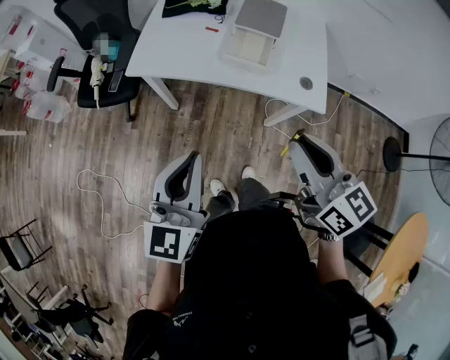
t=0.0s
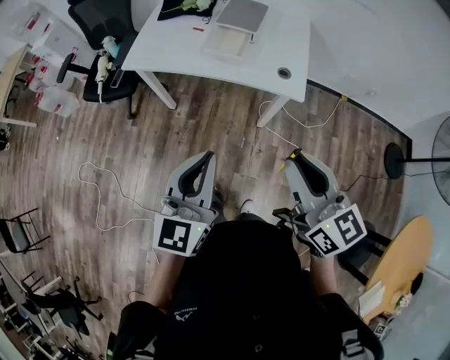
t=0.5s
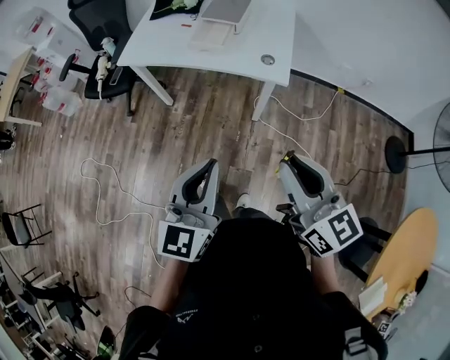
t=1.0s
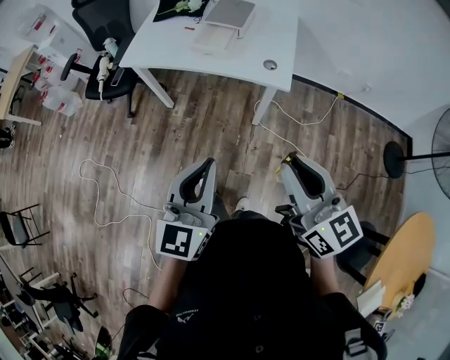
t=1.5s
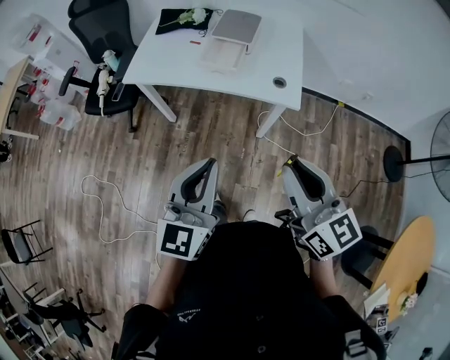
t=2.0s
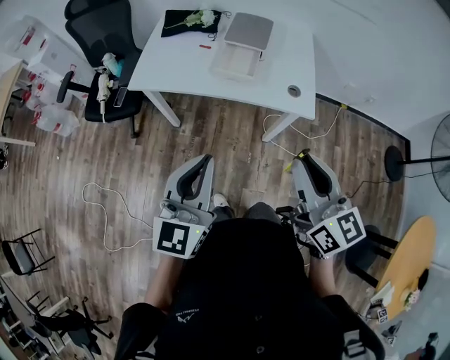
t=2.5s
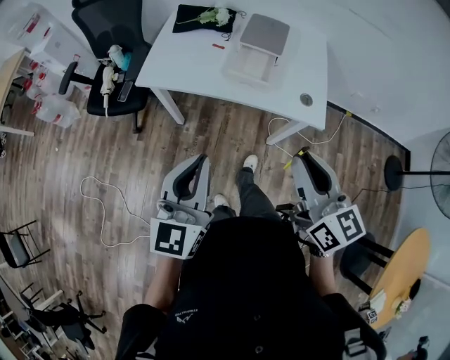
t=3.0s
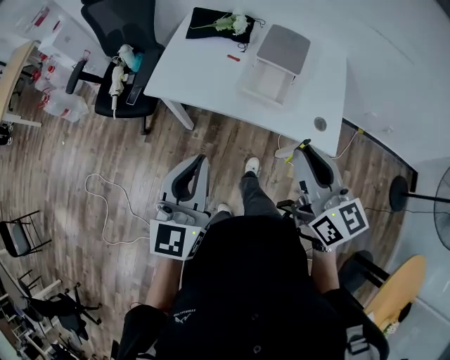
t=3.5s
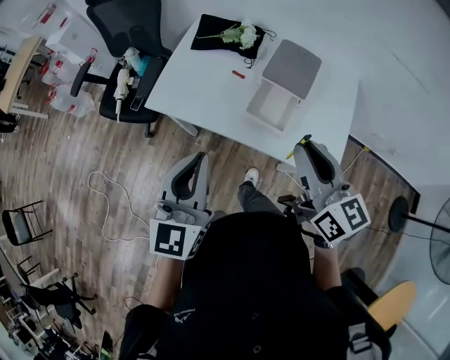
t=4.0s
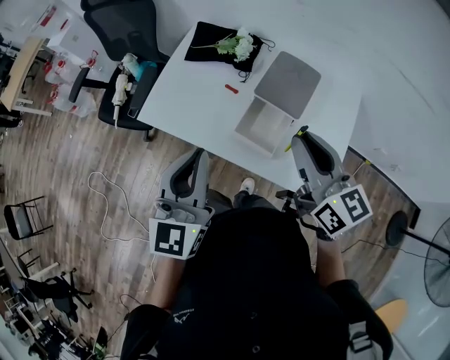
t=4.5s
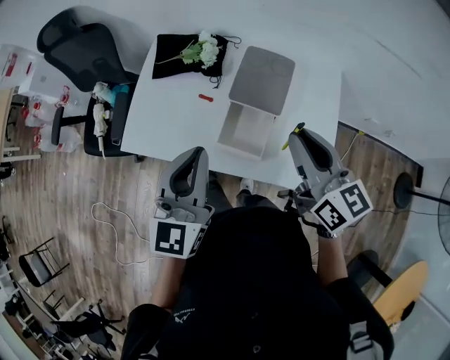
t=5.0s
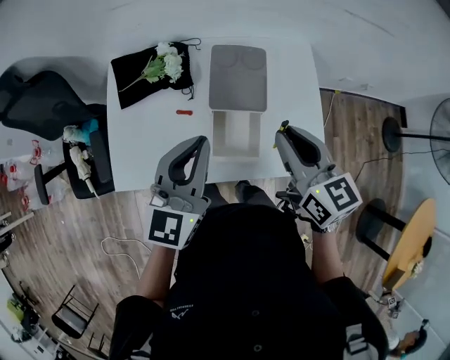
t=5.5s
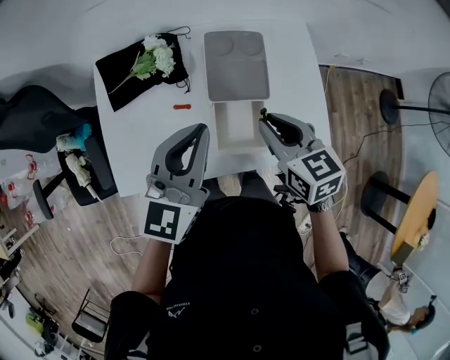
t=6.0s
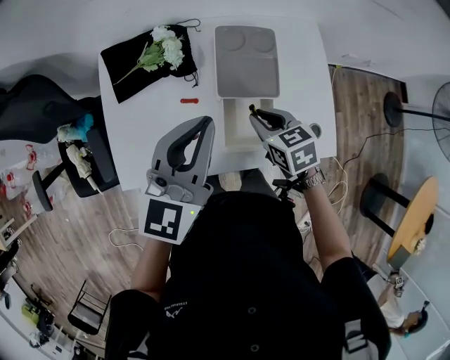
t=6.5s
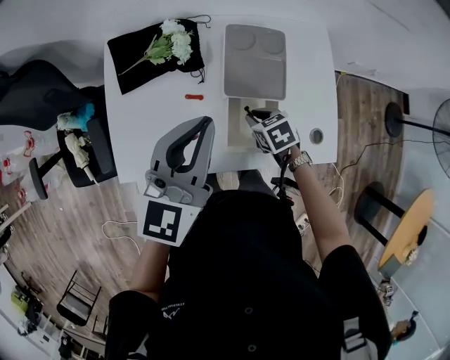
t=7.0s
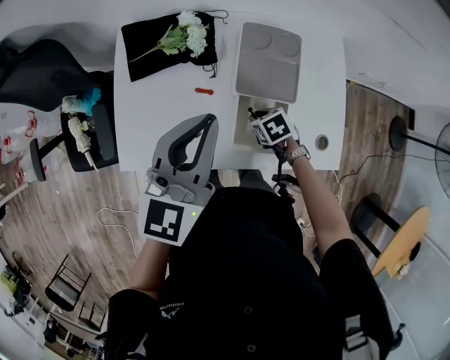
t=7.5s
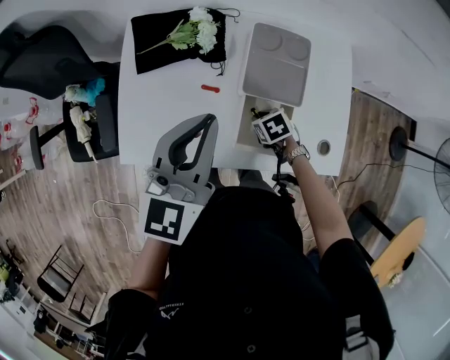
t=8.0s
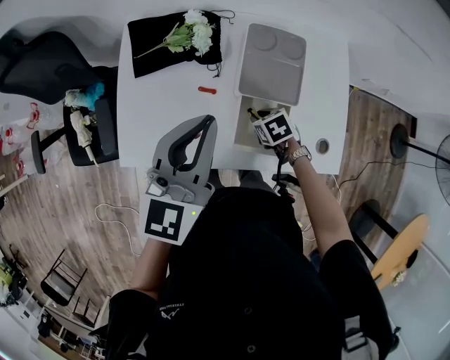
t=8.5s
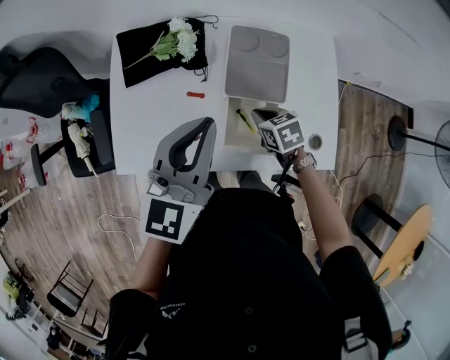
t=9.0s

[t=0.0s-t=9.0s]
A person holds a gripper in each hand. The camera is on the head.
t=0.0s to t=2.0s: The right gripper moves backward and to the right, approximately 20 cm. The left gripper travels to the right and backward by about 20 cm.
t=2.0s to t=4.5s: Both grippers are carried forward, approximately 40 cm.
t=4.5s to t=7.0s: The left gripper shifts by some 20 cm, and swivels some 40 degrees; the right gripper travels downward by approximately 30 cm, and angles its fingers downward, by some 60 degrees.
t=7.0s to t=9.0s: The right gripper moves approximately 5 cm downward and comes back.

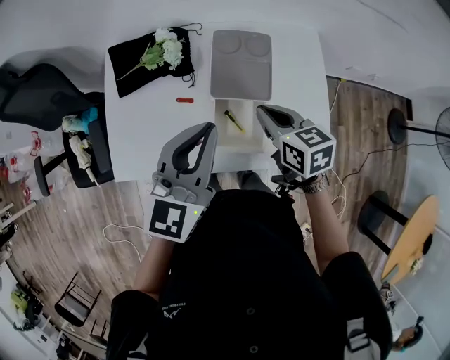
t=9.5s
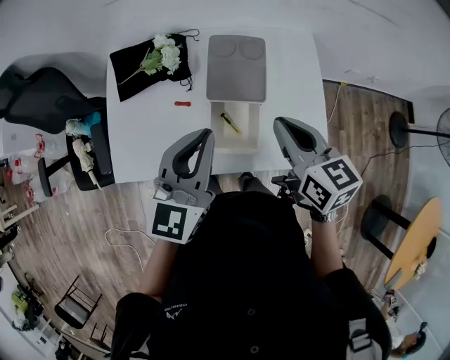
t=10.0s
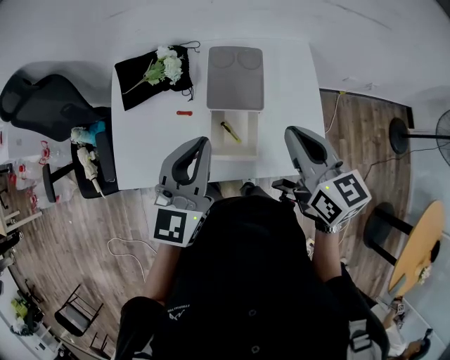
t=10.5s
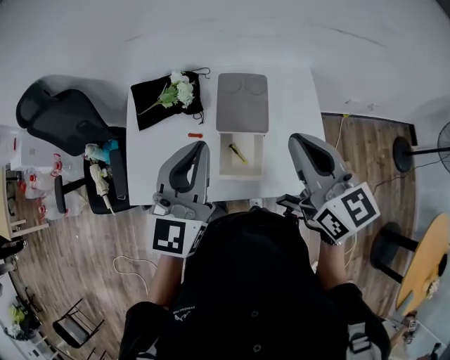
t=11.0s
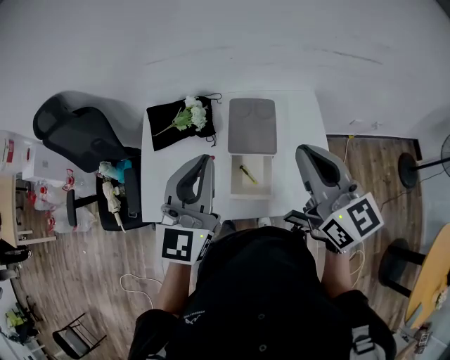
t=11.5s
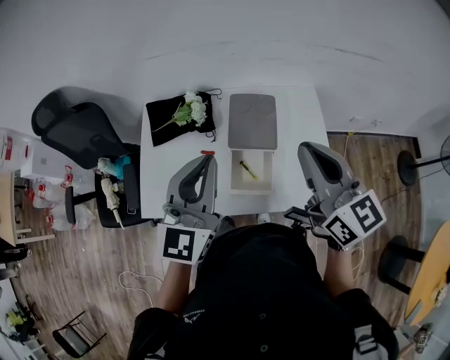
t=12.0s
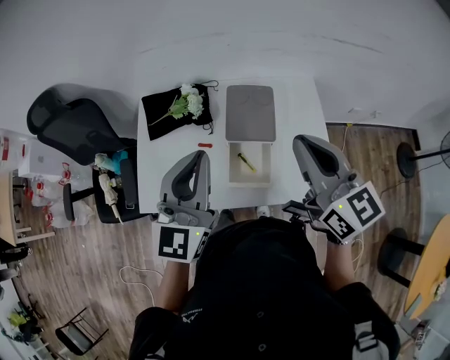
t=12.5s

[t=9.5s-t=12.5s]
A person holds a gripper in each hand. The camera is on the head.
t=9.5s to t=11.0s: The left gripper moves upward, roughly 10 cm, while the right gripper heads upward, covering about 20 cm, and rotates roughly 30 degrees.
t=11.0s to t=12.5s: The grippers move only a little.

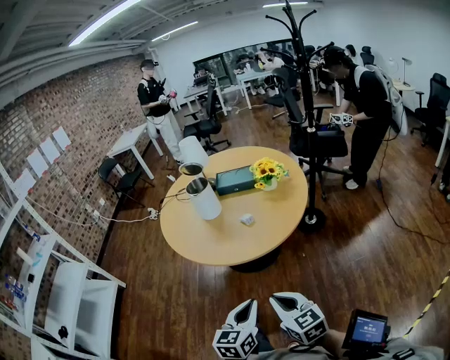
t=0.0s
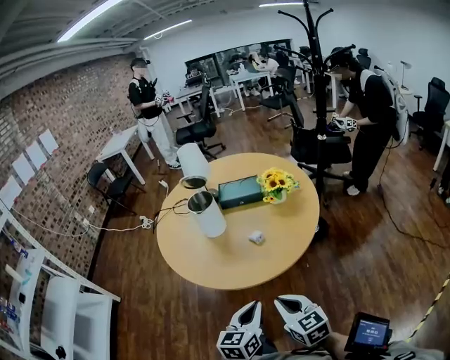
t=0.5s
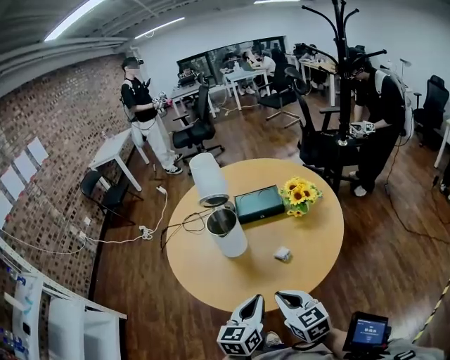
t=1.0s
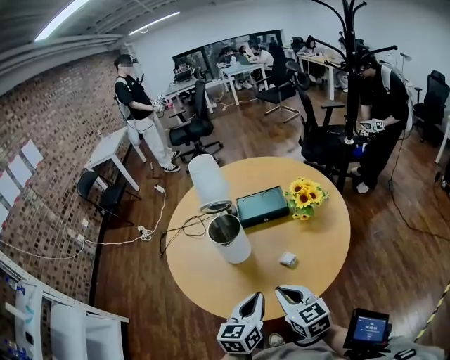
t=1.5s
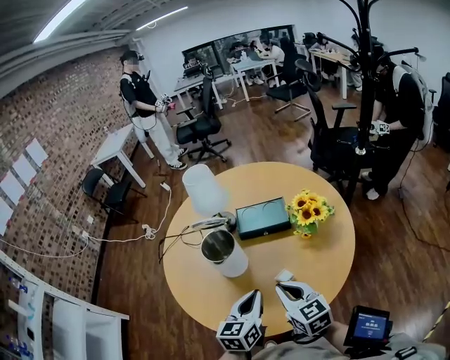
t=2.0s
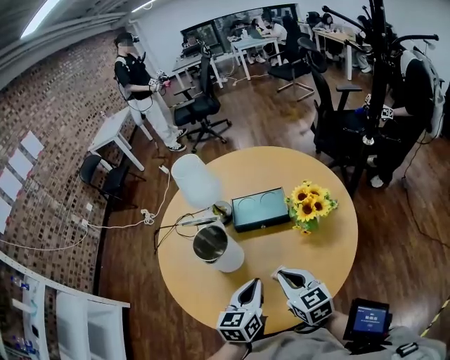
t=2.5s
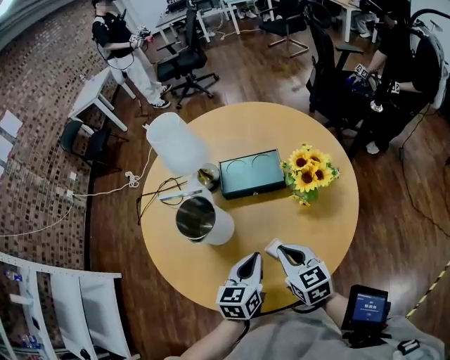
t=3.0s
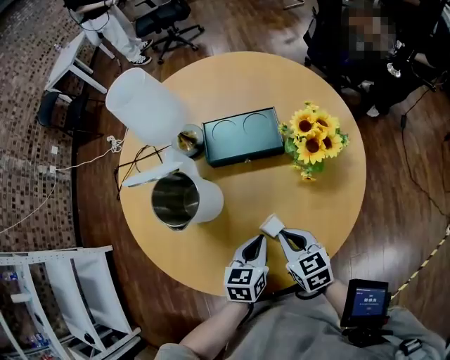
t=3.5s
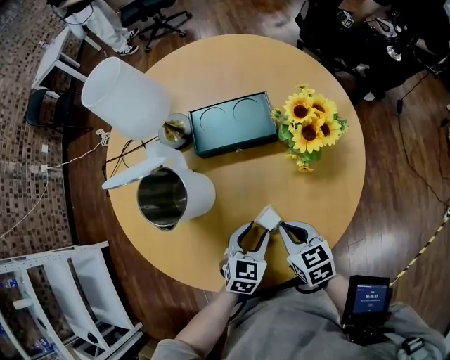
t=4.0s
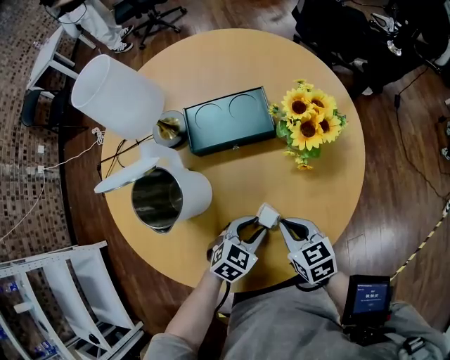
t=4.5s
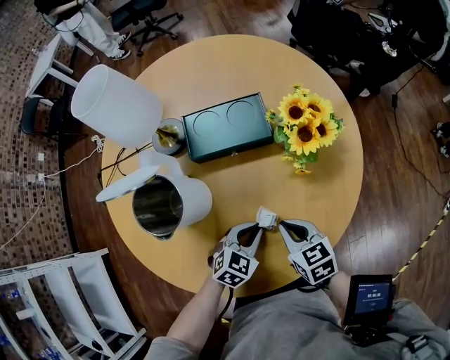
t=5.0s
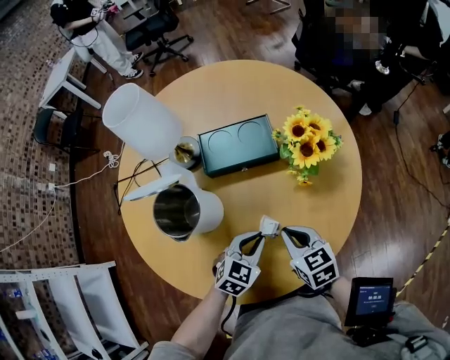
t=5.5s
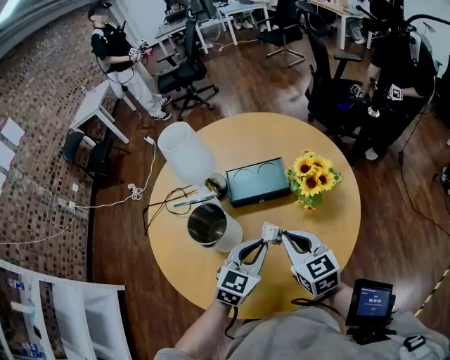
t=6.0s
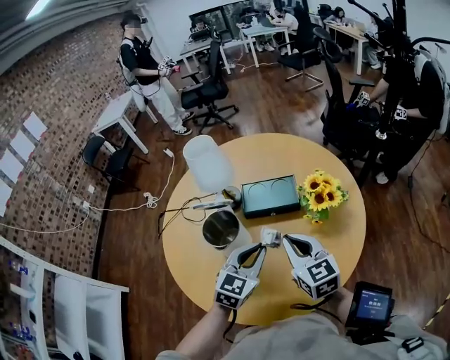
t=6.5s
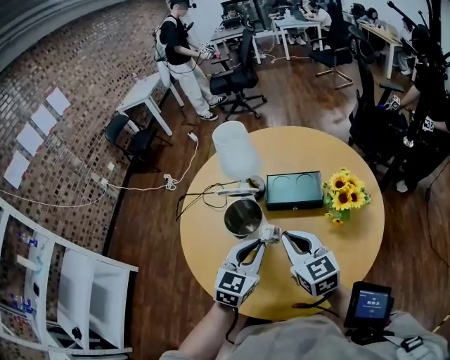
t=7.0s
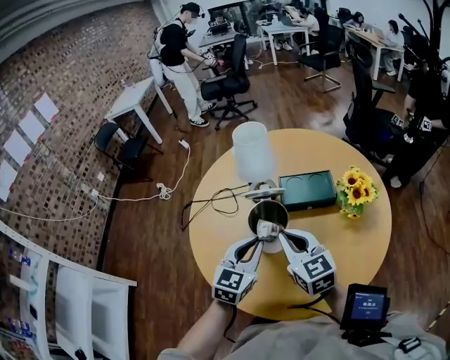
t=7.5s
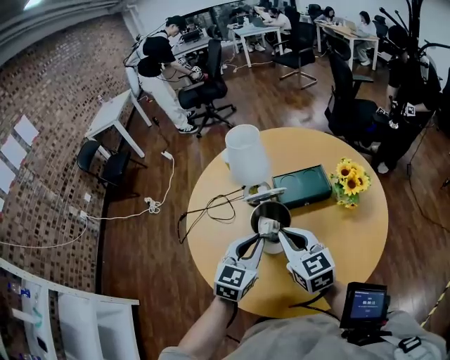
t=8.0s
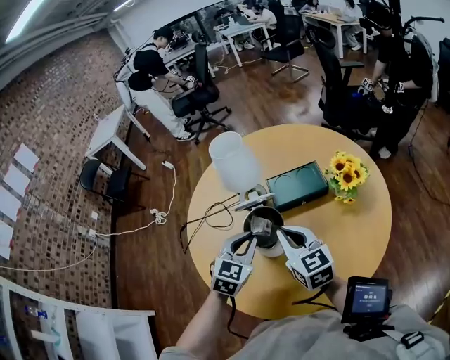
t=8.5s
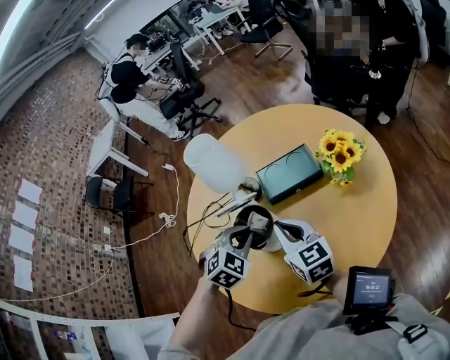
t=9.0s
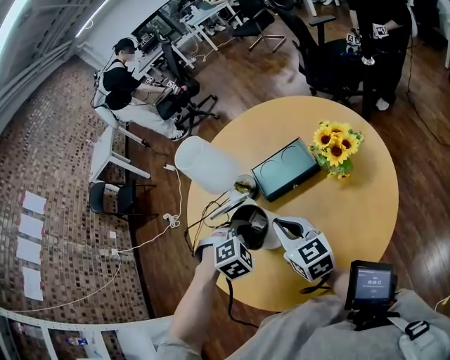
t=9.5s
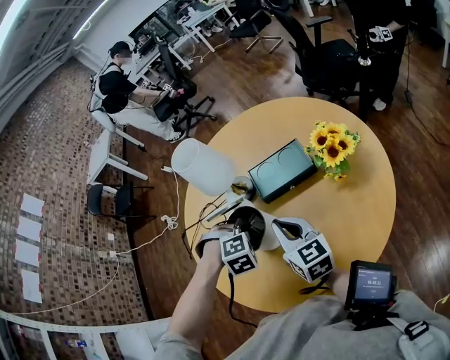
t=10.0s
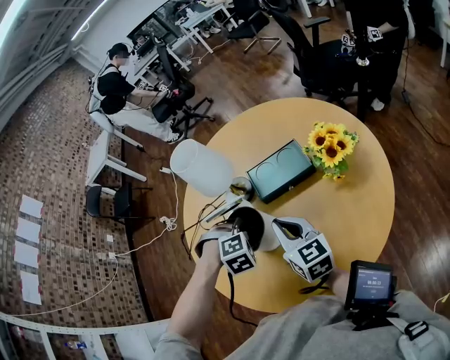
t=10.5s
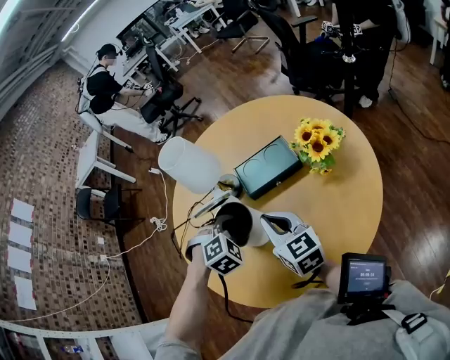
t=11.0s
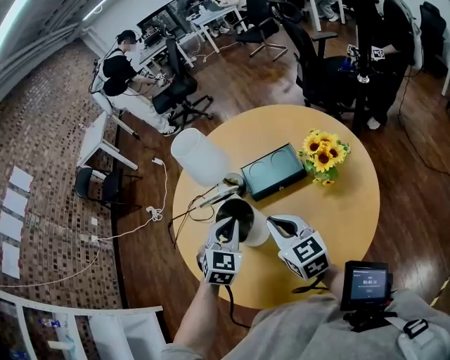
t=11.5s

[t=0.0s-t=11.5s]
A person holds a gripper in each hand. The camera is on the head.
t=0.0s to t=2.0s: Both grippers are carried forward, roughly 40 cm.
t=2.0s to t=4.0s: The grippers both shift downward by roughly 20 cm. The right gripper turns by roughly 20 degrees. The left gripper turns by about 30 degrees, and opens.
t=4.0s to t=6.0s: The two grippers go about 20 cm upward. The left gripper closes, while the right gripper turns by about 20 degrees.
t=6.0s to t=7.5s: Both grippers move to the left, about 20 cm.
t=7.5s to t=9.5s: The right gripper is displaced to the right by about 5 cm. The left gripper travels forward and downward by about 10 cm, and points its fingers about 50 degrees further downward.
t=9.5s to t=11.5s: The left gripper heads upward, covering roughly 5 cm, and tilts its fingers about 30 degrees upward.

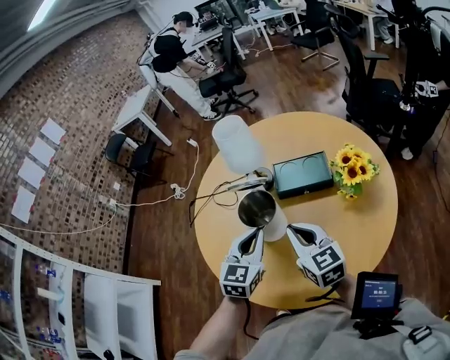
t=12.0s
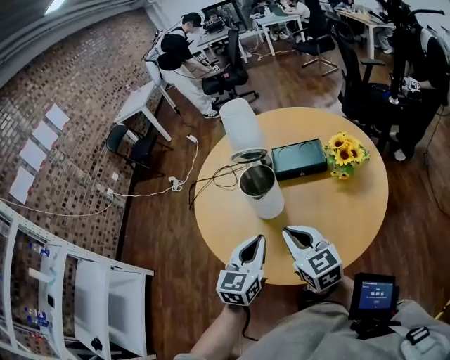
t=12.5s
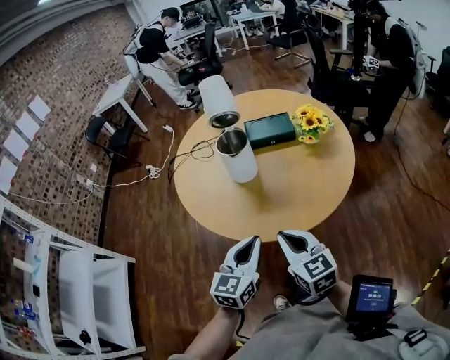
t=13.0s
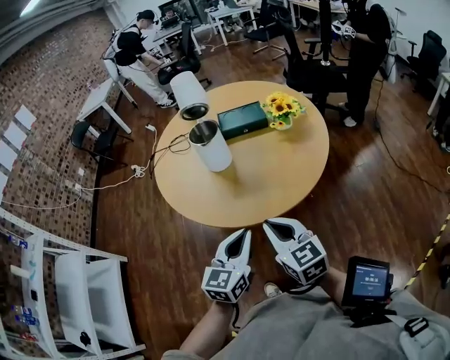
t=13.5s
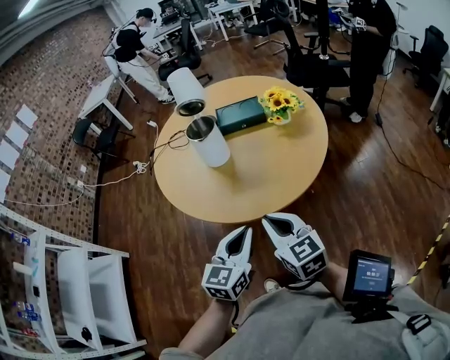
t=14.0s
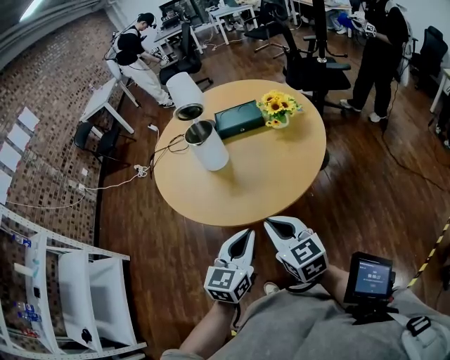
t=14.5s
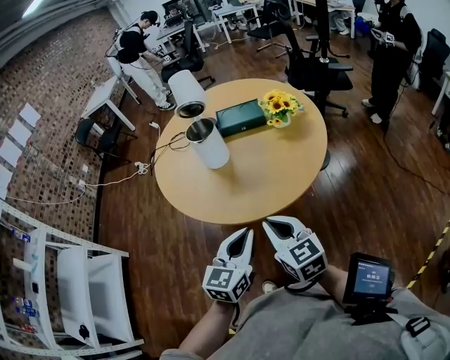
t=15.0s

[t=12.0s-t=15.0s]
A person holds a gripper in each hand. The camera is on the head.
t=12.0s to t=13.5s: Both grippers travel together backward, about 35 cm.
t=13.5s to t=15.0s: There are only small adjustments of the grippers.
